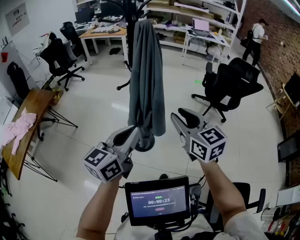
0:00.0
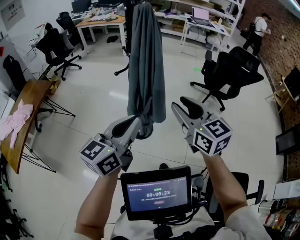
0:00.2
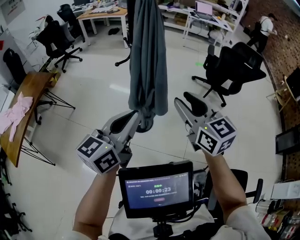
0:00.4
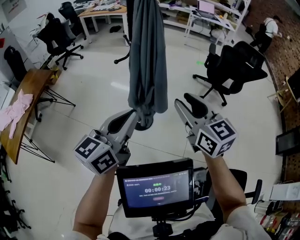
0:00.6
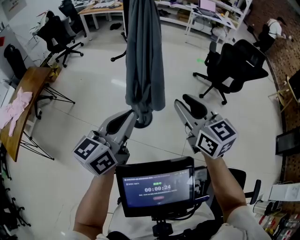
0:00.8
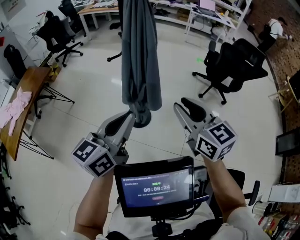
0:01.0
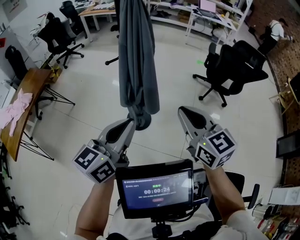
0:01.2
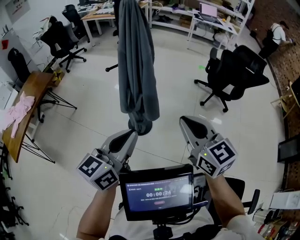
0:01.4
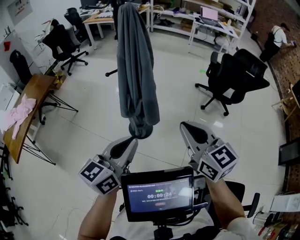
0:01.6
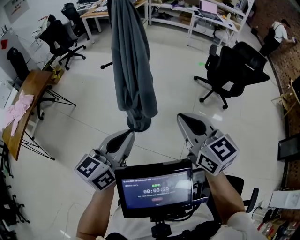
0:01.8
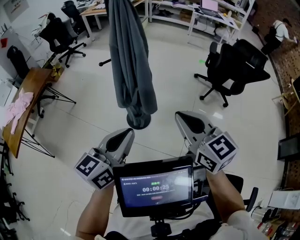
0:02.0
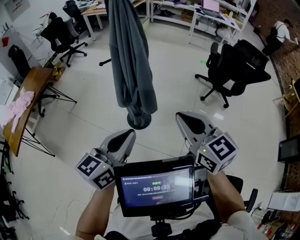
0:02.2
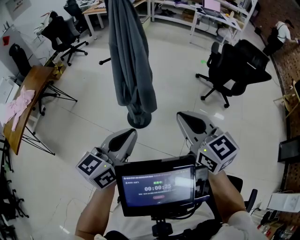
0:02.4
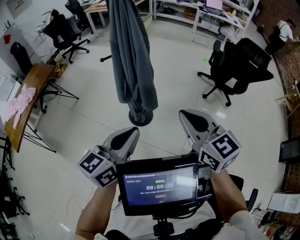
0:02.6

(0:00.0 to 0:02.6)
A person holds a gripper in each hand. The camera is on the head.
0:00.0 - 0:01.2: The left gripper ends up roughly 5 cm from where it was. The right gripper travels backward by some 5 cm.
0:01.2 - 0:02.6: The left gripper travels to the right by roughly 5 cm.

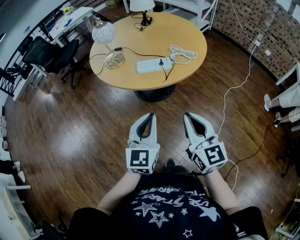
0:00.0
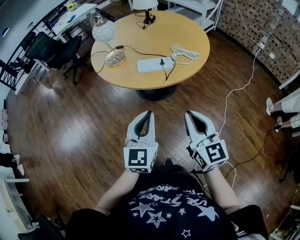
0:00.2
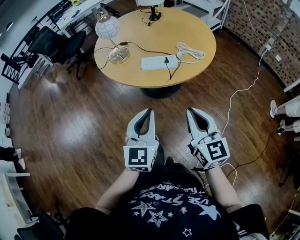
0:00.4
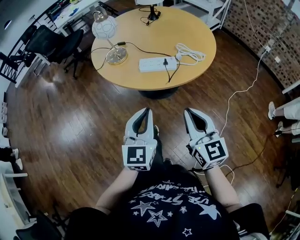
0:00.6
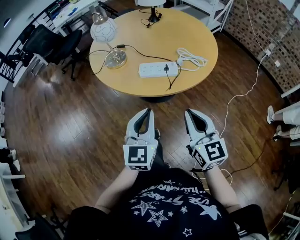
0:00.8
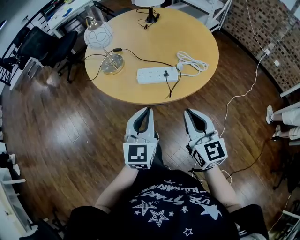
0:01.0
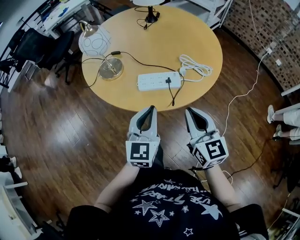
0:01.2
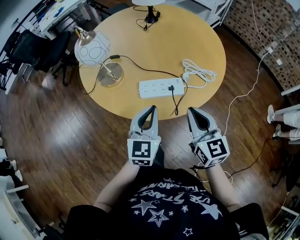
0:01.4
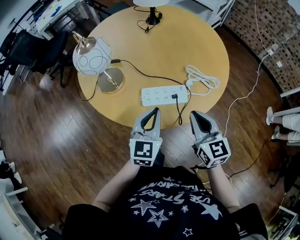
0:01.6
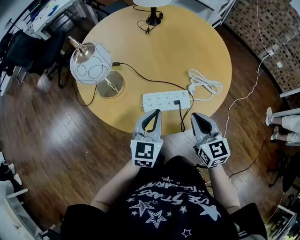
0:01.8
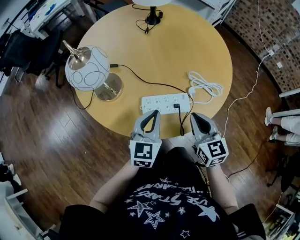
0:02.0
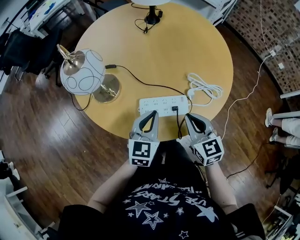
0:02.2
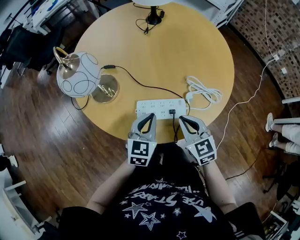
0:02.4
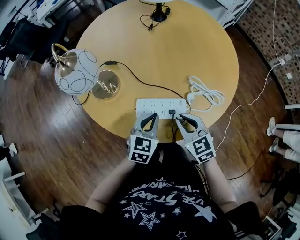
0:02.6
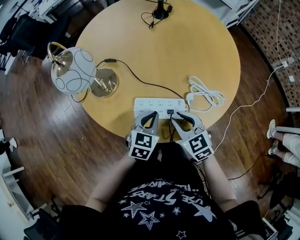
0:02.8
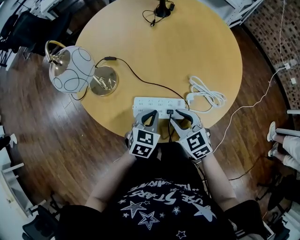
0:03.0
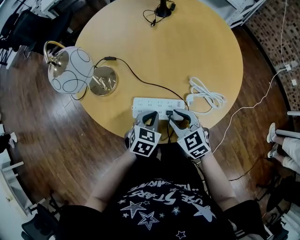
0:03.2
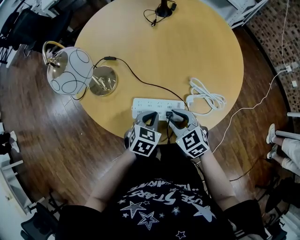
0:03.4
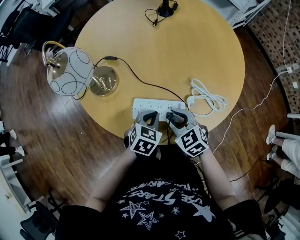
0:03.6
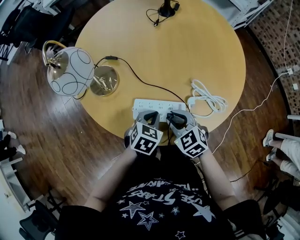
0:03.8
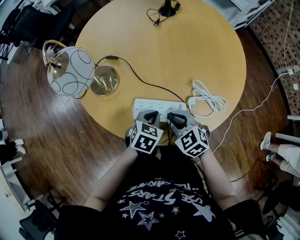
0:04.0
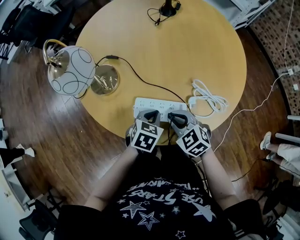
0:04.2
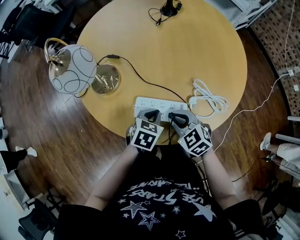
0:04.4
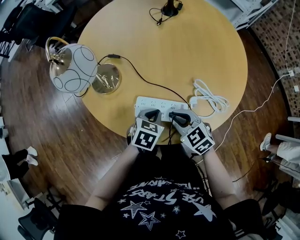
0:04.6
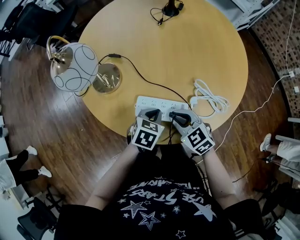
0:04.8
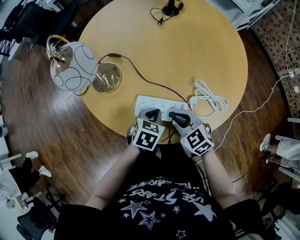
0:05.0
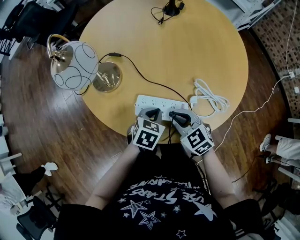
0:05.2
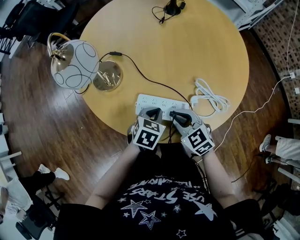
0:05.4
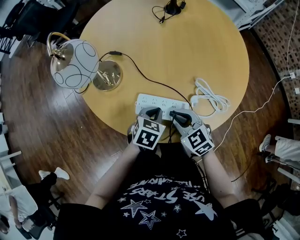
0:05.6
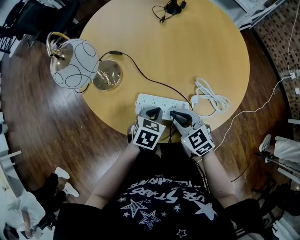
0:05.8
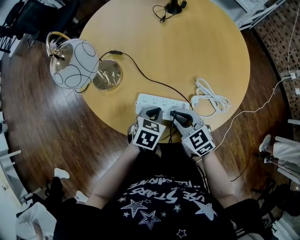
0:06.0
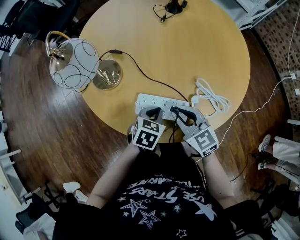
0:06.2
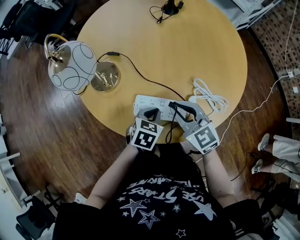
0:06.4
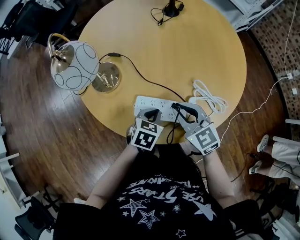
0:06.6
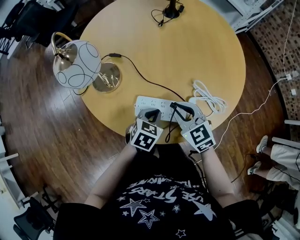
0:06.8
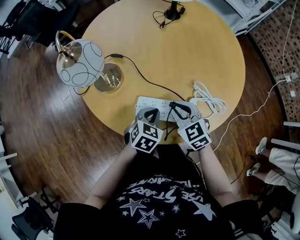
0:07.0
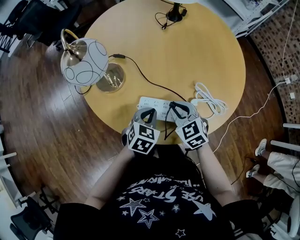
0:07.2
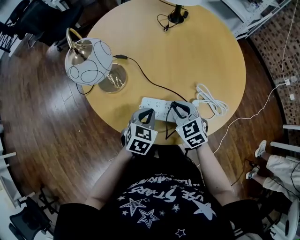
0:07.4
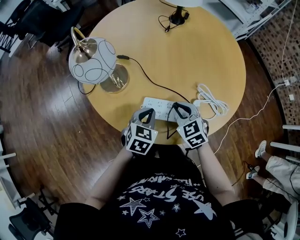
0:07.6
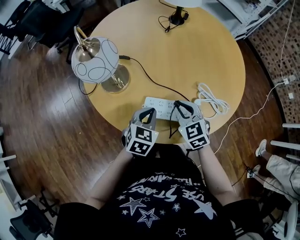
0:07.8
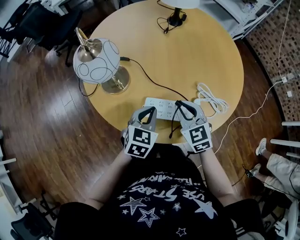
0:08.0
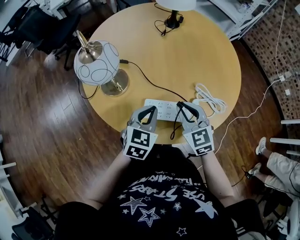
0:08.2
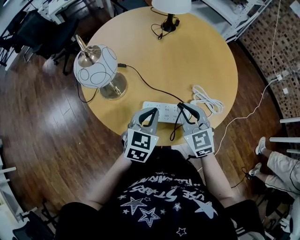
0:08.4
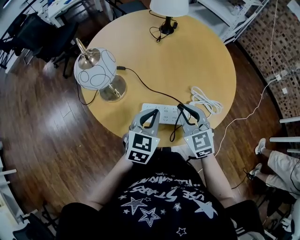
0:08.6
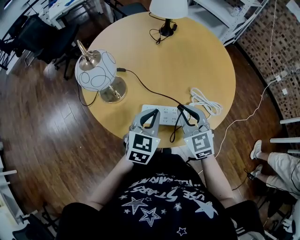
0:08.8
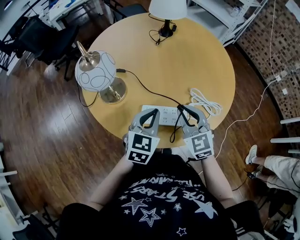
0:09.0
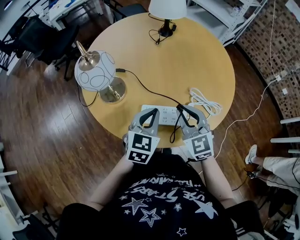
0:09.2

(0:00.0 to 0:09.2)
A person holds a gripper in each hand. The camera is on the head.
0:00.0 - 0:01.6: The grippers both shift forward by approximately 30 cm.
0:01.6 - 0:03.0: The grippers both shift downward and forward by approximately 15 cm. The left gripper turns by approximately 30 degrees, while the right gripper changes its angle by about 40 degrees, and opens up.
0:03.0 - 0:04.6: The grippers make only small movements.
0:04.6 - 0:06.2: The right gripper ends up some 5 cm from where it was.
0:06.2 - 0:07.6: The right gripper changes place by roughly 5 cm, and turns by roughly 20 degrees. The left gripper moves roughly 5 cm.
0:07.6 - 0:09.2: Both grippers travel together upward, about 10 cm. The right gripper swivels about 20 degrees.

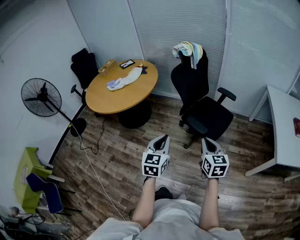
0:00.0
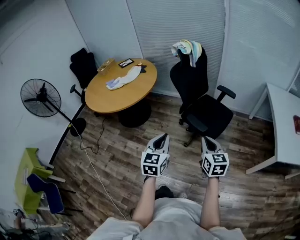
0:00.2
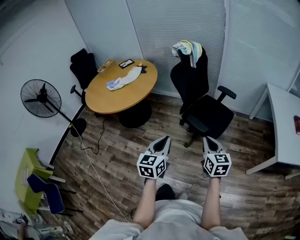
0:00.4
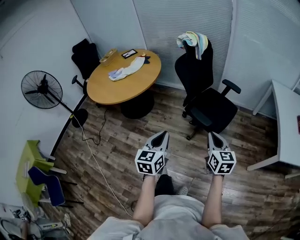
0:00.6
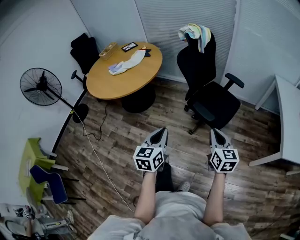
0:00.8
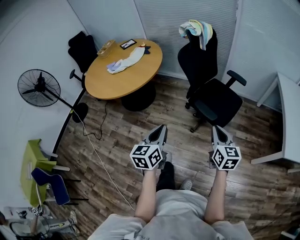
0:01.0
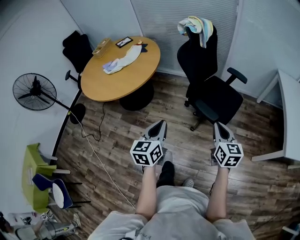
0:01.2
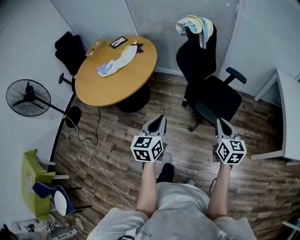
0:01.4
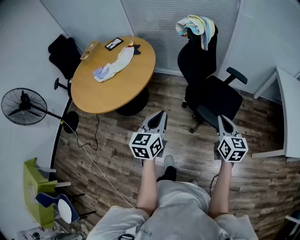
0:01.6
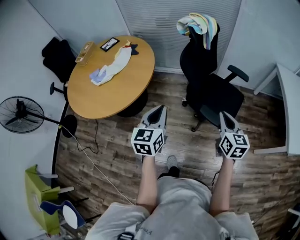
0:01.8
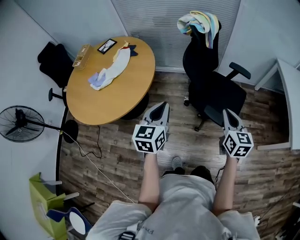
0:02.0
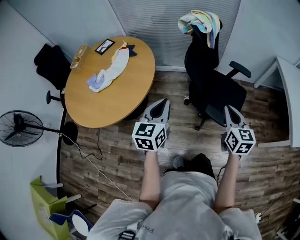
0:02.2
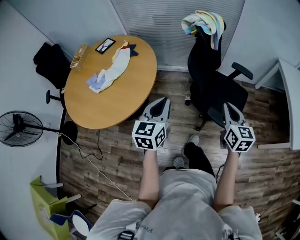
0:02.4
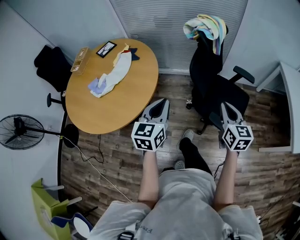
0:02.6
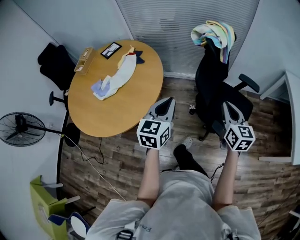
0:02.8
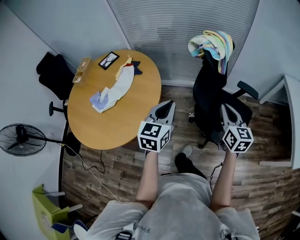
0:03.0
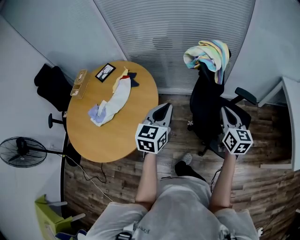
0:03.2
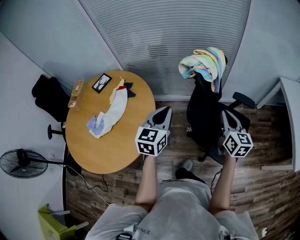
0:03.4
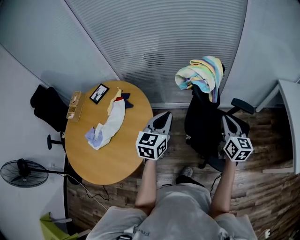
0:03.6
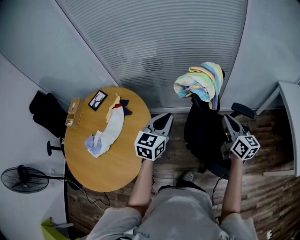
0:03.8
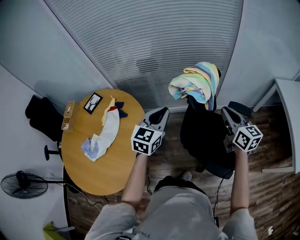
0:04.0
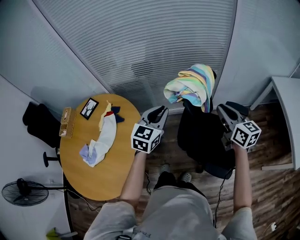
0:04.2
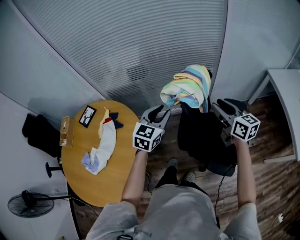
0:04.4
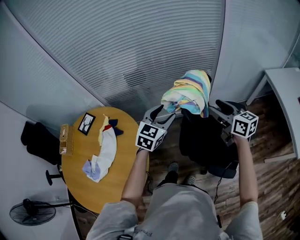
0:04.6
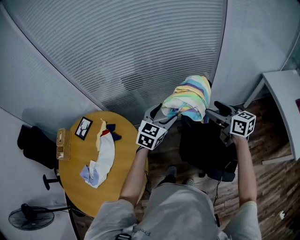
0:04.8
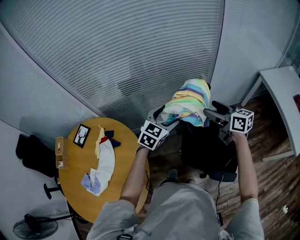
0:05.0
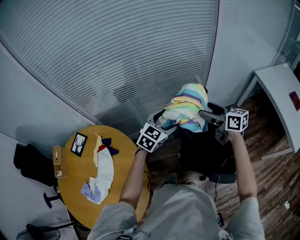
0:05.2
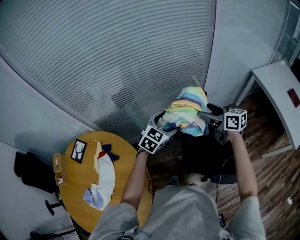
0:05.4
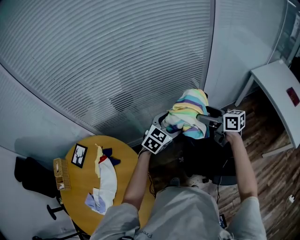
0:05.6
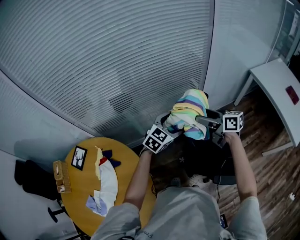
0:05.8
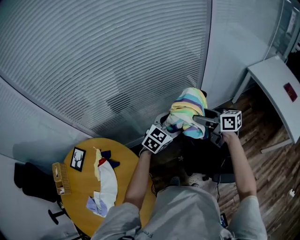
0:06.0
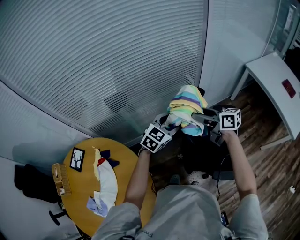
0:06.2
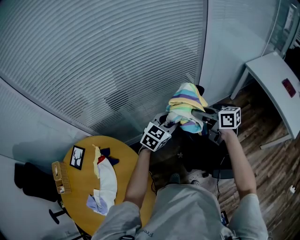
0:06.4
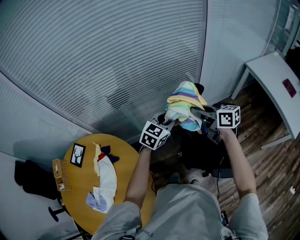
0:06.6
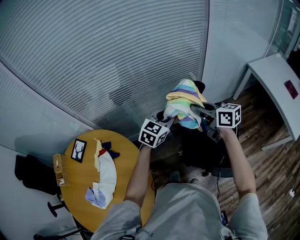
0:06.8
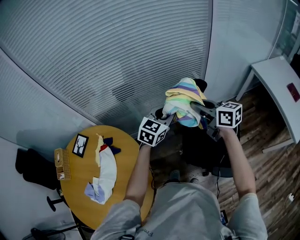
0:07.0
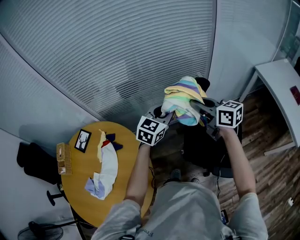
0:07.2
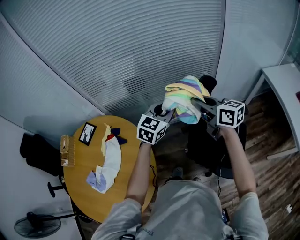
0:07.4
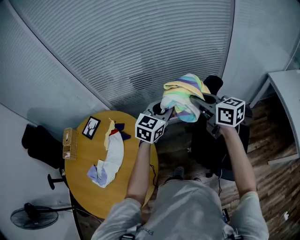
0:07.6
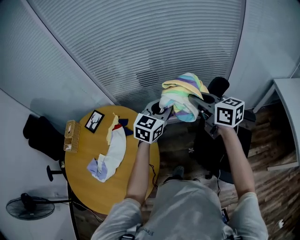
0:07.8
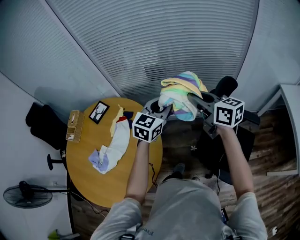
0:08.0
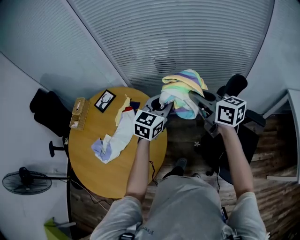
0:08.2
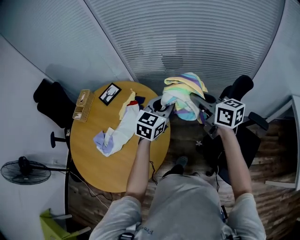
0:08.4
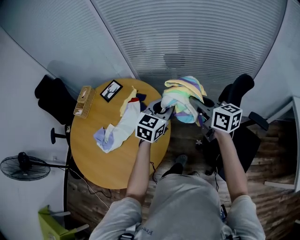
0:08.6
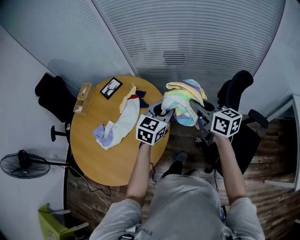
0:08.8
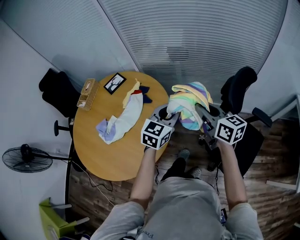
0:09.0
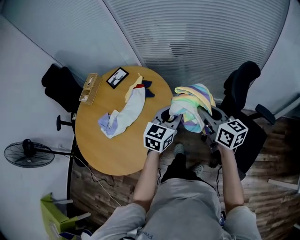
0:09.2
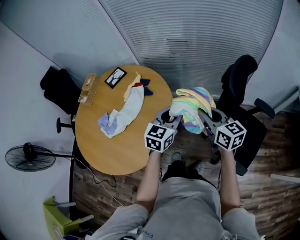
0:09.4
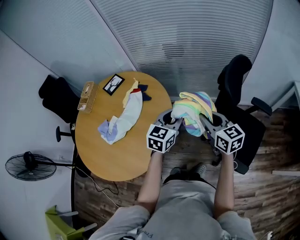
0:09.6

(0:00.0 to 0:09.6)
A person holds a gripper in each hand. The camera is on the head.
0:00.0 - 0:01.6: The left gripper moves forward and to the left, about 25 cm. Meanwhile the right gripper travels forward by roughly 20 cm.
0:01.6 - 0:03.2: The grippers both shift forward by roughly 30 cm.
0:03.2 - 0:04.8: Both grippers travel together forward, approximately 25 cm. The left gripper rotates some 30 degrees, and opens up. Meanwhile the right gripper opens.
0:04.8 - 0:06.4: The right gripper heads forward, covering about 5 cm, and closes. Meanwhile the left gripper is displaced forward and to the right by about 10 cm, turns by approximately 20 degrees, and closes its fingers.
0:06.4 - 0:08.0: The grippers both shift to the left and upward by about 20 cm. The left gripper changes its angle by approximately 40 degrees.
0:08.0 - 0:09.6: Both grippers travel together backward and downward, roughly 20 cm.

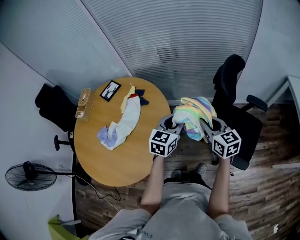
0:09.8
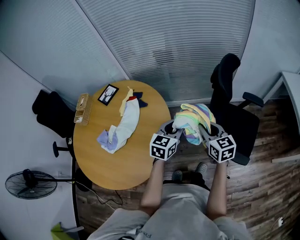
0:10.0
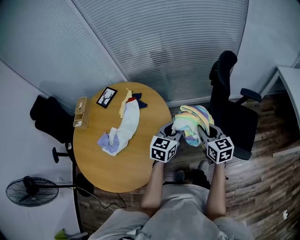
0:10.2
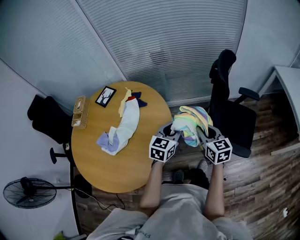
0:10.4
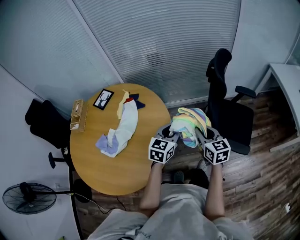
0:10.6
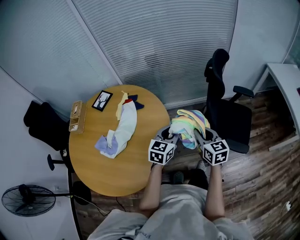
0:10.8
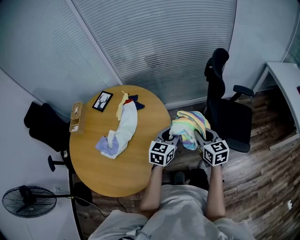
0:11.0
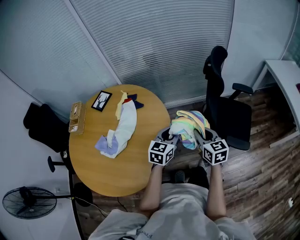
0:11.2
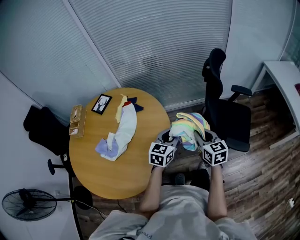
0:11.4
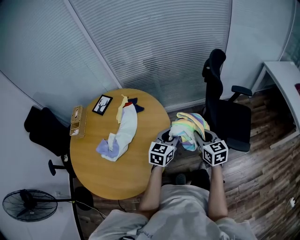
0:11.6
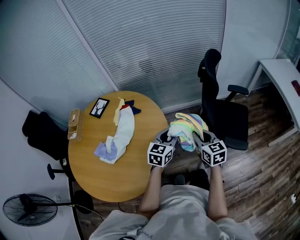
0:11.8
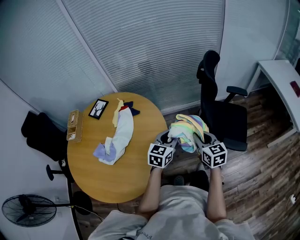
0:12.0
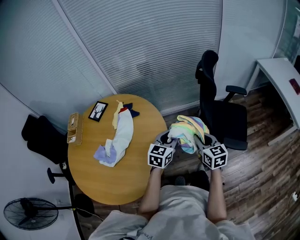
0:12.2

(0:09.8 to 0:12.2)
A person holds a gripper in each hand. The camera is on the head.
0:09.8 - 0:11.0: The two grippers go some 10 cm backward.
0:11.0 - 0:12.2: The grippers stay close to where they were, moving slightly.
